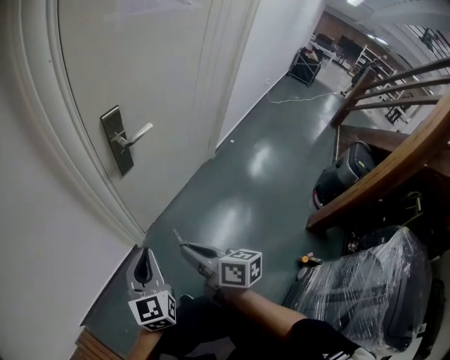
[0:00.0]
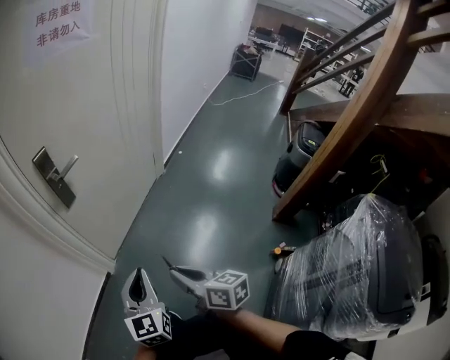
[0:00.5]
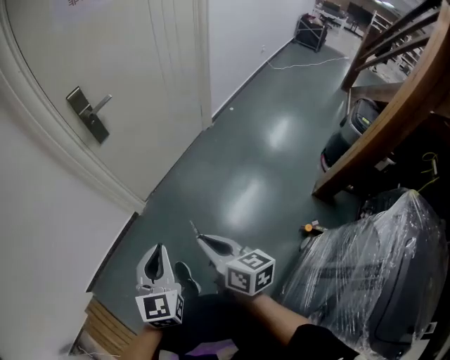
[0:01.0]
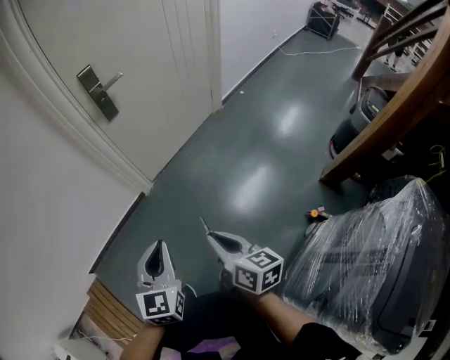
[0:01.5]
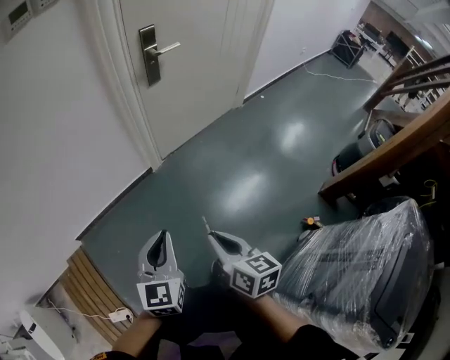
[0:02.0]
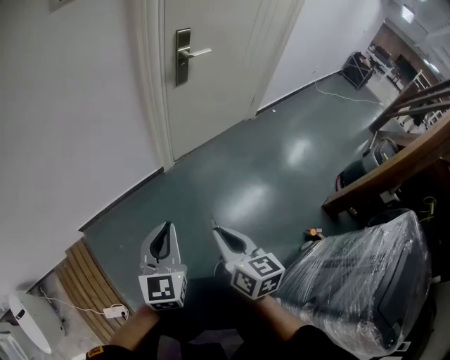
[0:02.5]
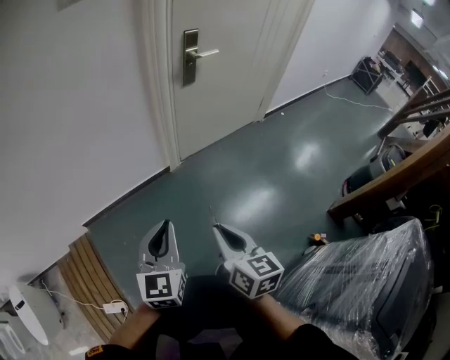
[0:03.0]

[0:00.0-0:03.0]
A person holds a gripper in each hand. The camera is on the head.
0:00.0 to 0:01.5: The grippers both shift backward and to the right by approximately 30 cm.
0:01.5 to 0:03.0: Both grippers travel together to the left, roughly 20 cm.

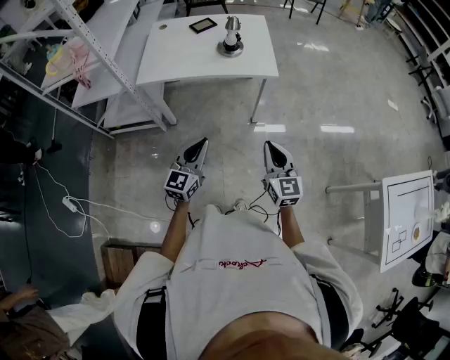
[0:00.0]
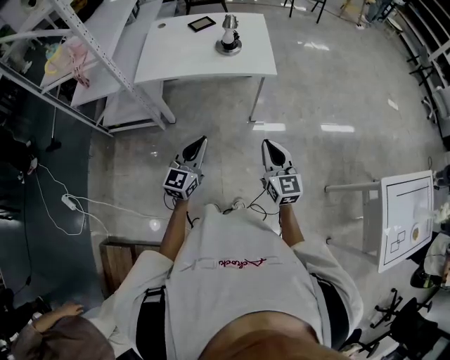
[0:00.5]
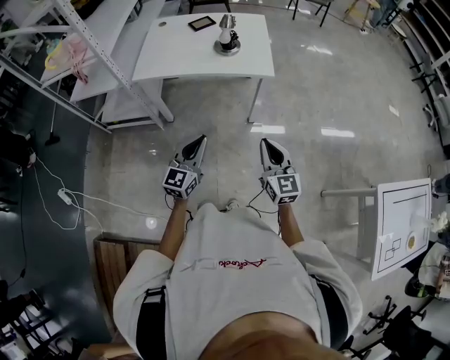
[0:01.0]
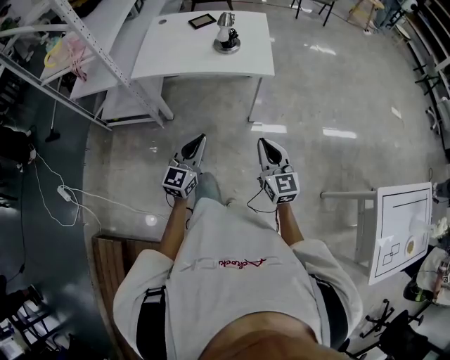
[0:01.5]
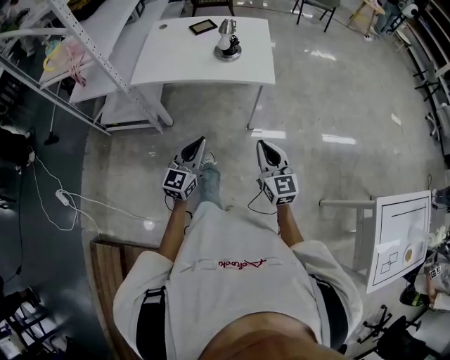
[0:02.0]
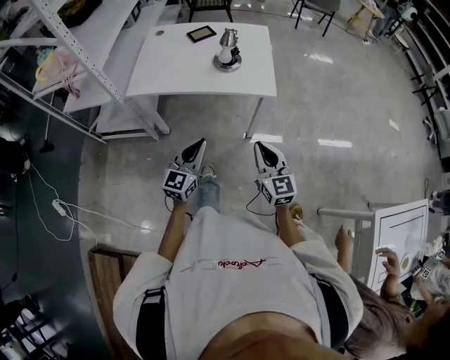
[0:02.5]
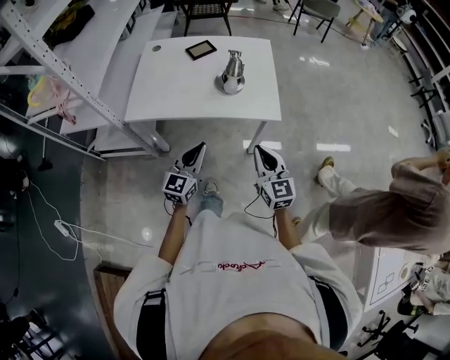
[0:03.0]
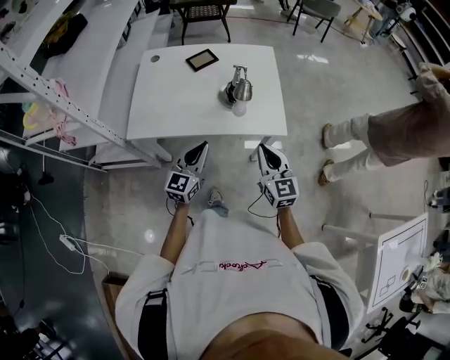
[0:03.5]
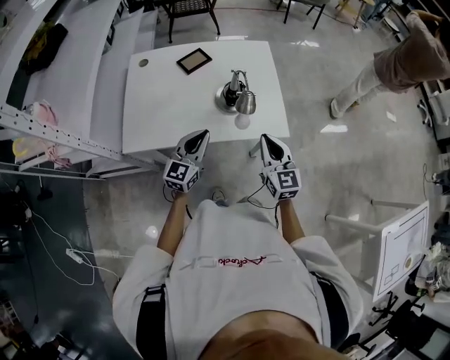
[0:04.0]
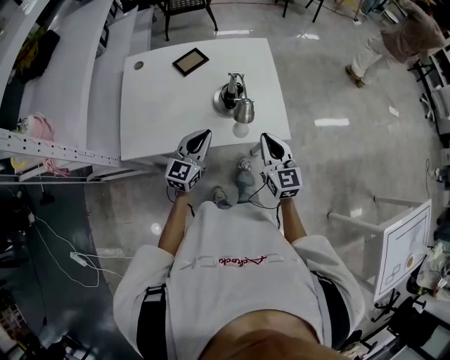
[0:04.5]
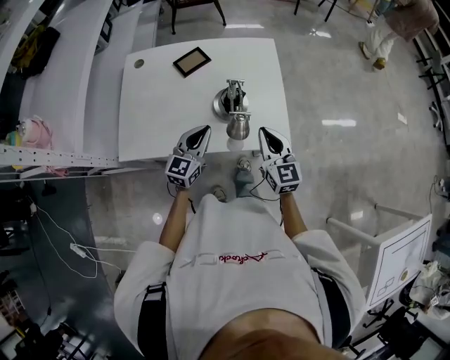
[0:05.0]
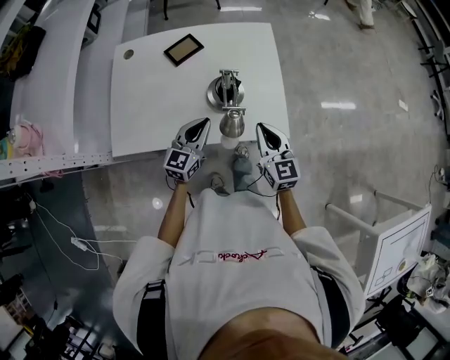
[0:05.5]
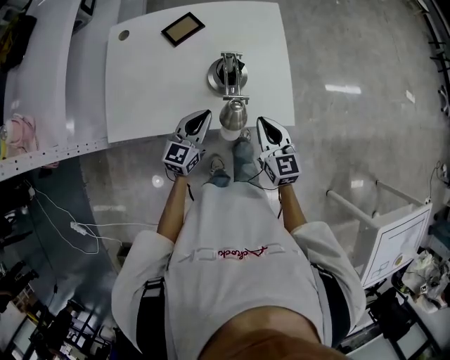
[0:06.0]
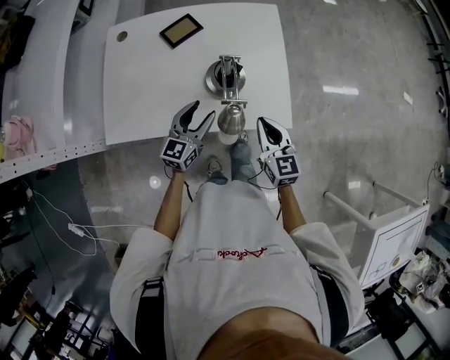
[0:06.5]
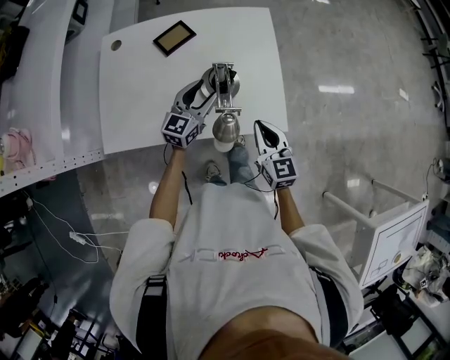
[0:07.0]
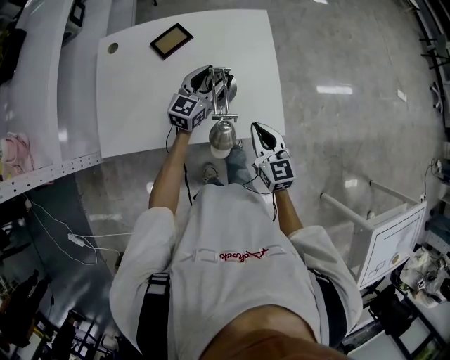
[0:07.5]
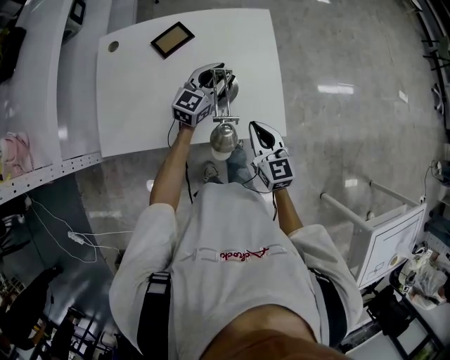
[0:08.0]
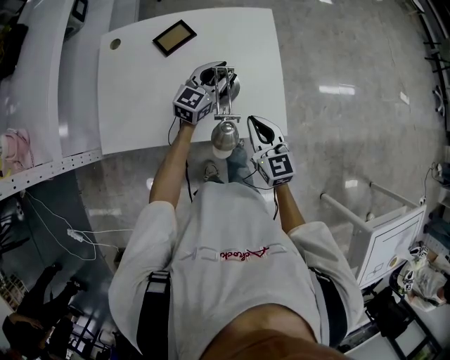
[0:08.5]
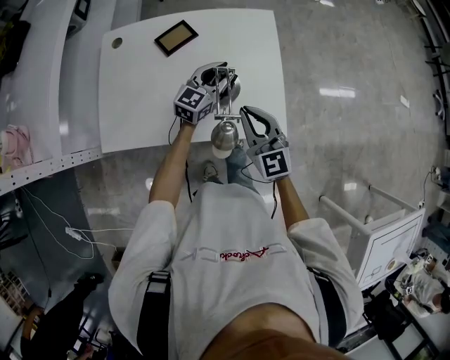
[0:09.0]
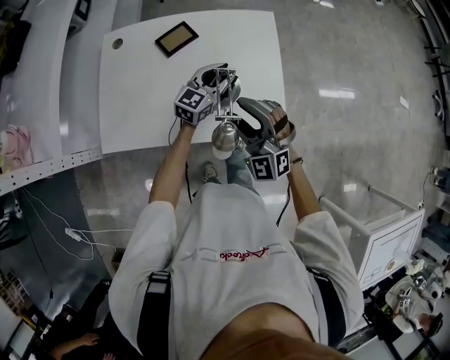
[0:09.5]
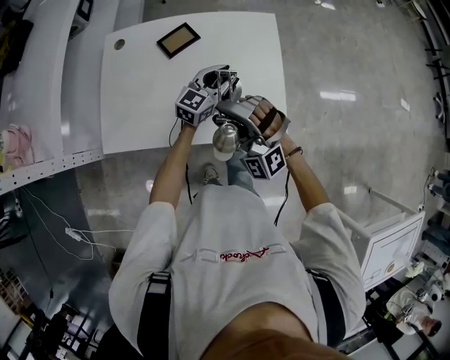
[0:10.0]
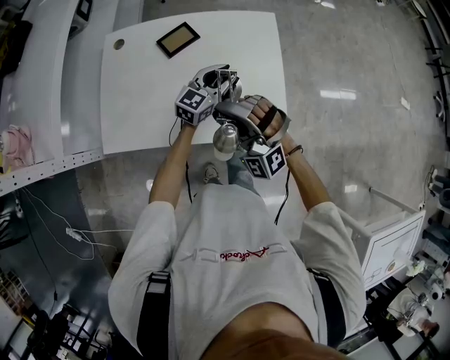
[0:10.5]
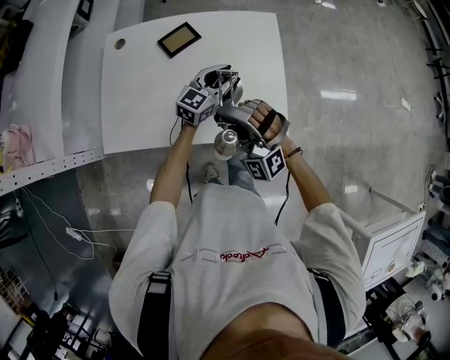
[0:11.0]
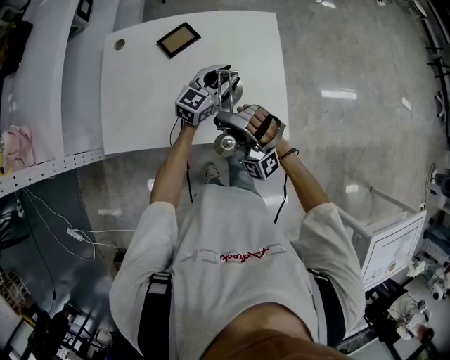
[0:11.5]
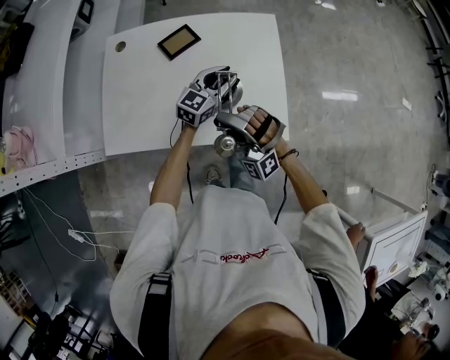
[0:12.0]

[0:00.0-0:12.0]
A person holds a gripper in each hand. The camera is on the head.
0:00.0 to 0:02.0: The right gripper goes about 5 cm forward. The left gripper ends up approximately 5 cm from where it was.
0:02.0 to 0:04.0: Both grippers move forward, about 35 cm.
0:04.0 to 0:06.0: Both grippers travel together downward and forward, approximately 10 cm.
0:06.0 to 0:08.0: The left gripper travels forward by approximately 20 cm, and opens its fingers.
0:08.0 to 0:10.0: The right gripper moves to the left and upward, some 15 cm, twists about 80 degrees counterclockwise, seen from behind, and opens its fingers.
0:10.0 to 0:12.0: There are only small adjustments of the grippers.

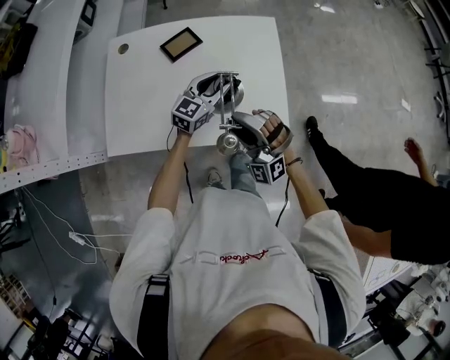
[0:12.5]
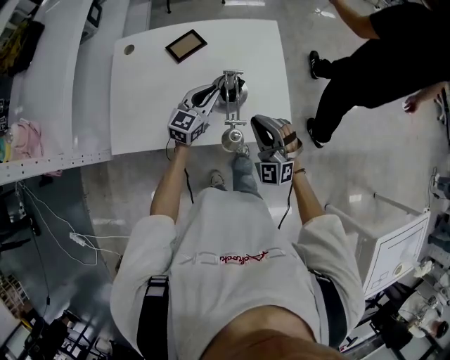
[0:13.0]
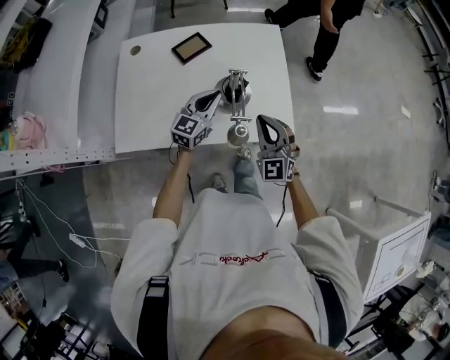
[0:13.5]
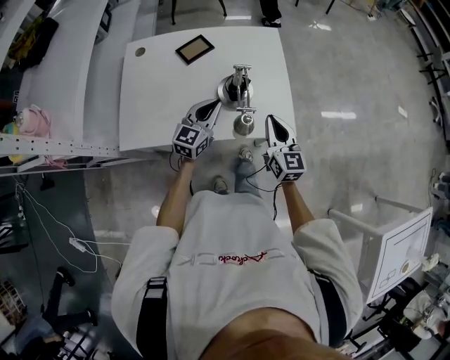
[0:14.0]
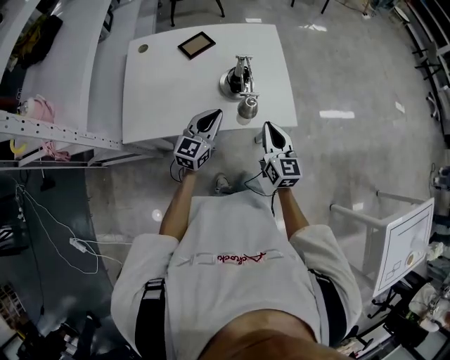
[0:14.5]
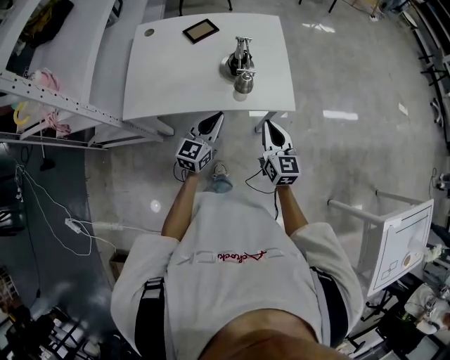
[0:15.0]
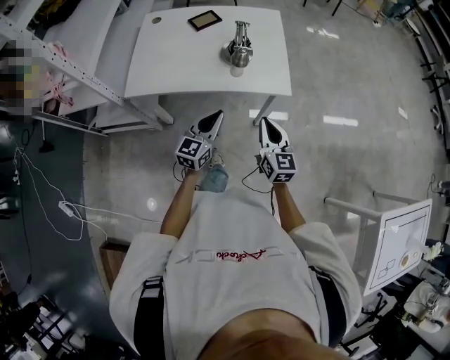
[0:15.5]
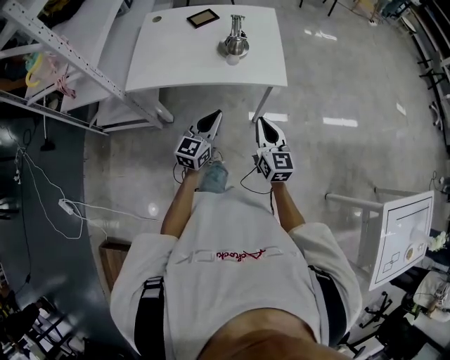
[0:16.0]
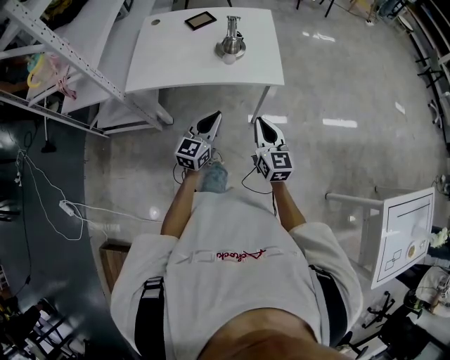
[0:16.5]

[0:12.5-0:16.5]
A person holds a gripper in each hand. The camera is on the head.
0:12.5 to 0:14.5: The left gripper heads backward, covering approximately 20 cm, and closes its fingers. Meanwhile the right gripper is displaced to the right and backward by about 10 cm, rolls clockwise, seen from behind, by about 80 degrees, and closes its fingers.
0:14.5 to 0:16.5: Both grippers travel together backward, roughly 20 cm.

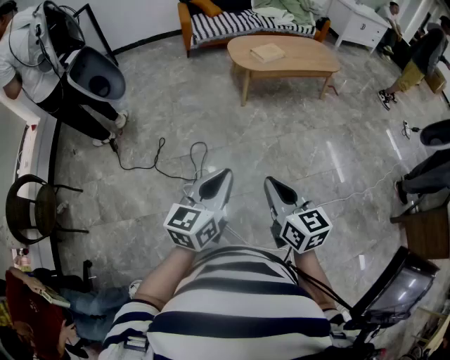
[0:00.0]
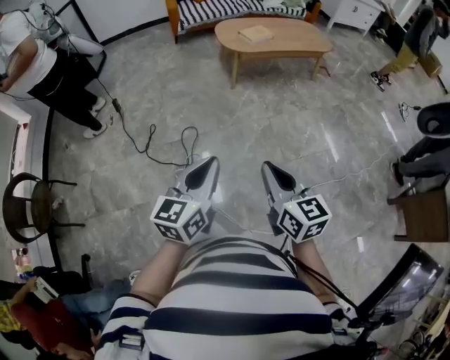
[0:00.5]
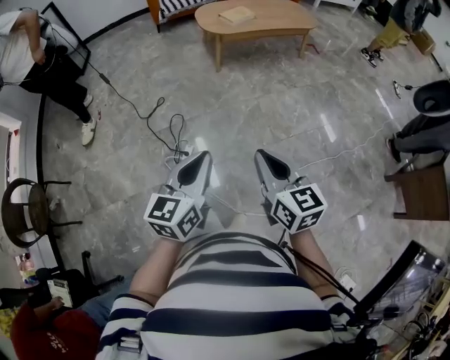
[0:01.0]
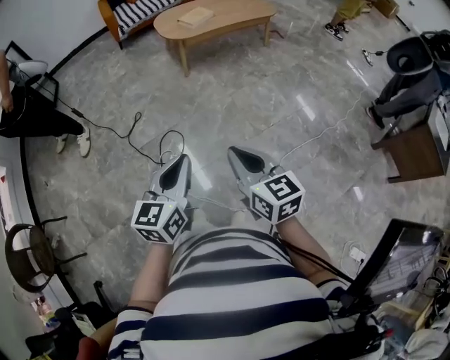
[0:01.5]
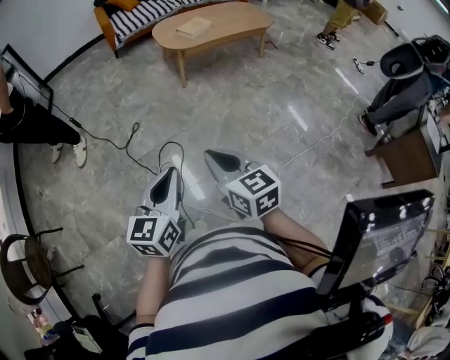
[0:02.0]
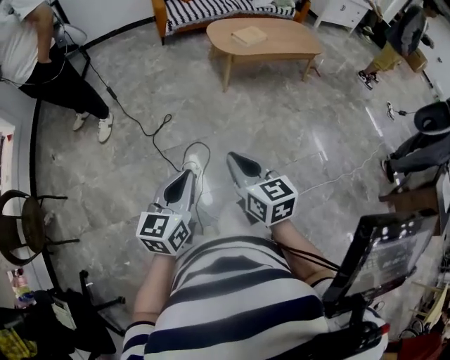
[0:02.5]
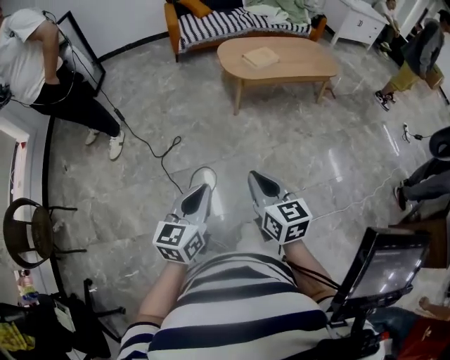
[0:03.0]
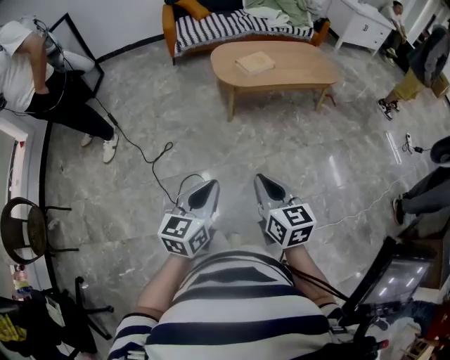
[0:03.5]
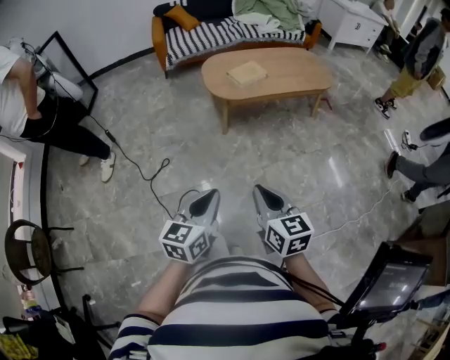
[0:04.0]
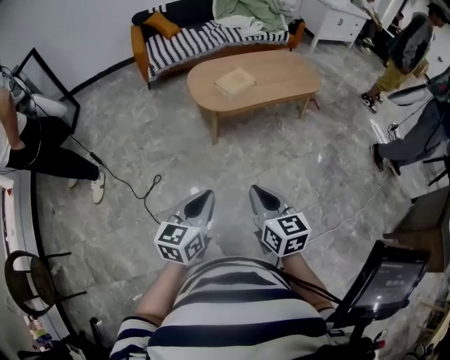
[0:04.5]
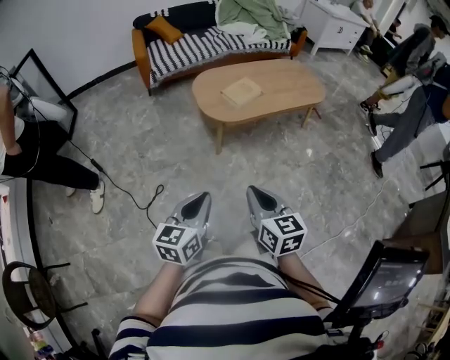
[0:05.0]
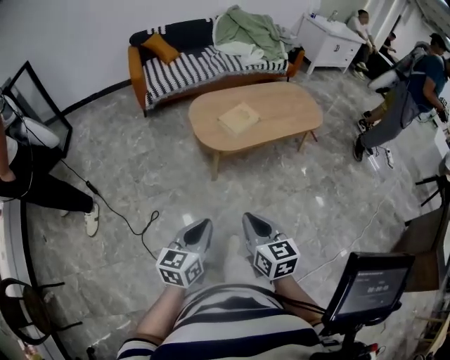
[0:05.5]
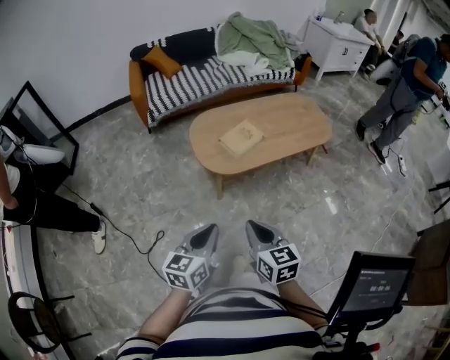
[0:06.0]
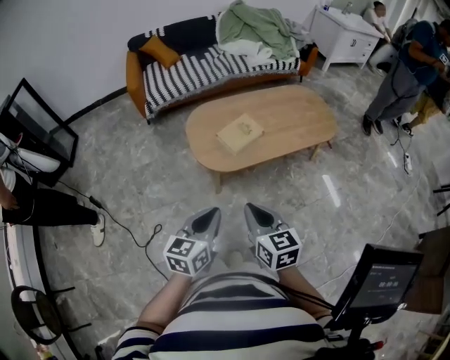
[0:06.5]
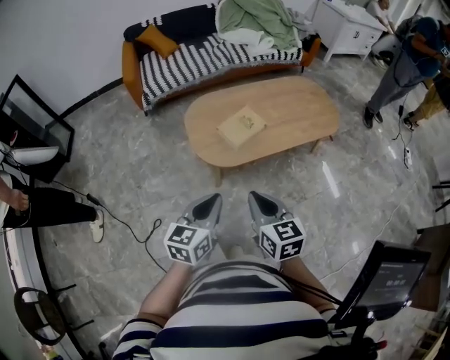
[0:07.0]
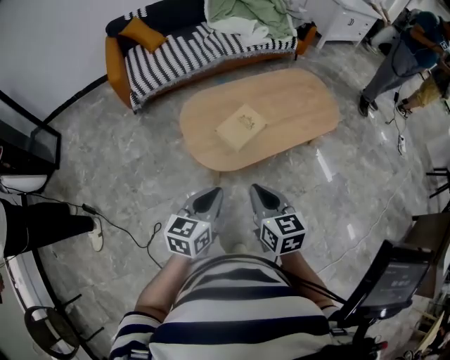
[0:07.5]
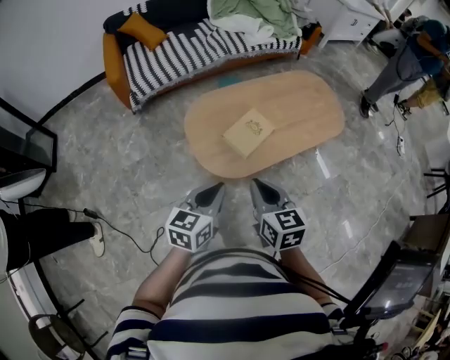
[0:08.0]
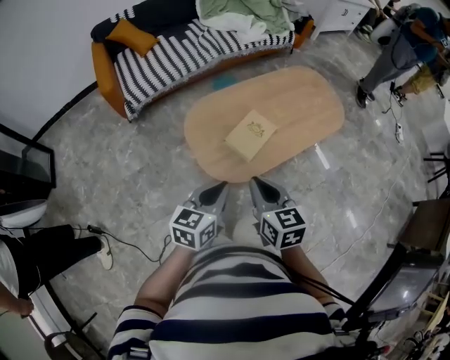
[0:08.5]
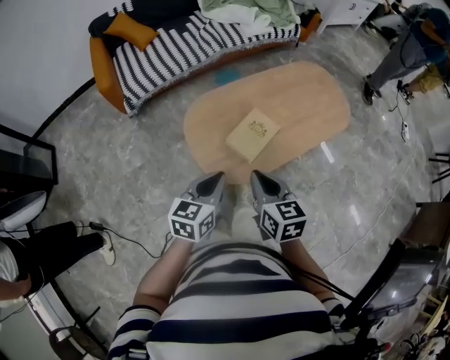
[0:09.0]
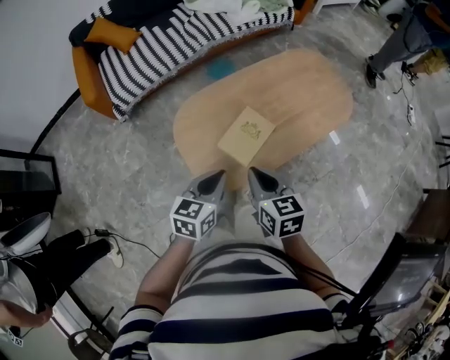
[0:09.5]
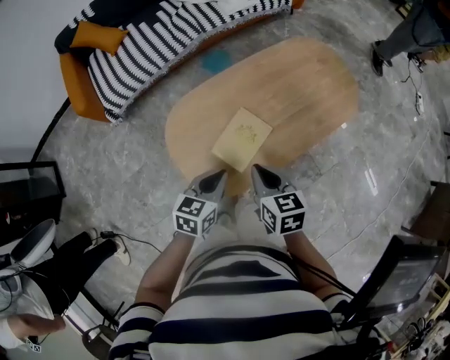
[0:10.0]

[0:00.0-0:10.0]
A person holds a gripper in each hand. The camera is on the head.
0:00.0 to 0:02.0: The right gripper ends up approximately 5 cm from where it was.
0:02.0 to 0:04.0: Both grippers move forward and to the right, about 25 cm.
0:04.0 to 0:06.0: The two grippers go roughly 30 cm forward.
0:06.0 to 0:08.0: The grippers both shift forward by some 25 cm.
0:08.0 to 0:10.0: Both grippers move forward and downward, approximately 20 cm.
